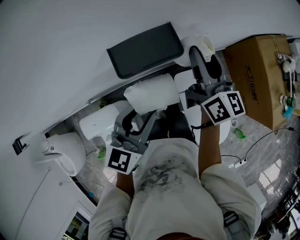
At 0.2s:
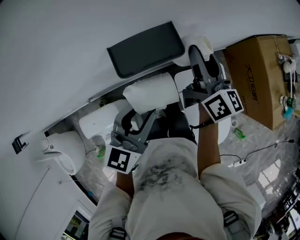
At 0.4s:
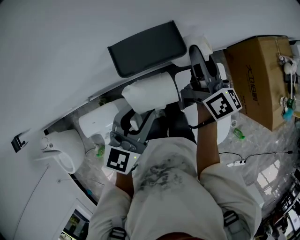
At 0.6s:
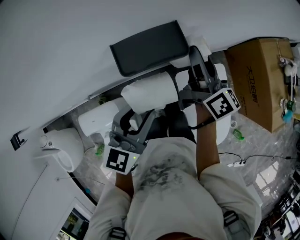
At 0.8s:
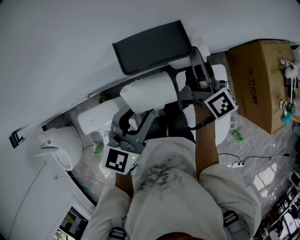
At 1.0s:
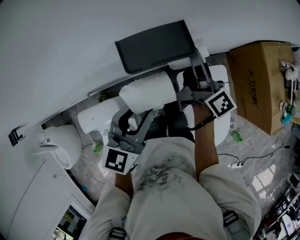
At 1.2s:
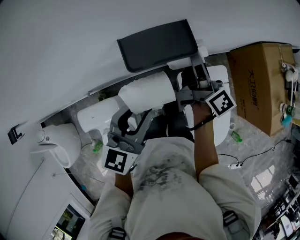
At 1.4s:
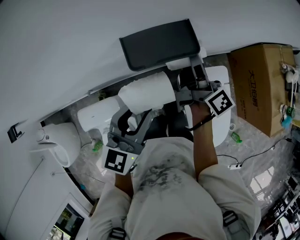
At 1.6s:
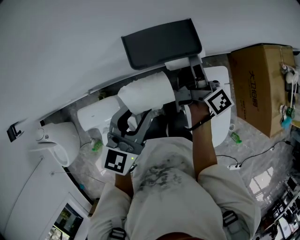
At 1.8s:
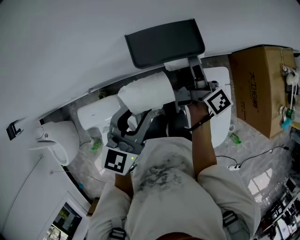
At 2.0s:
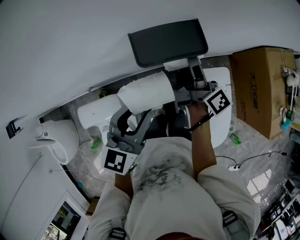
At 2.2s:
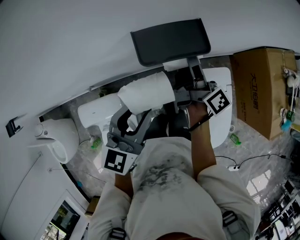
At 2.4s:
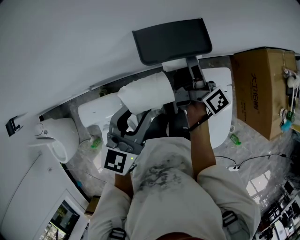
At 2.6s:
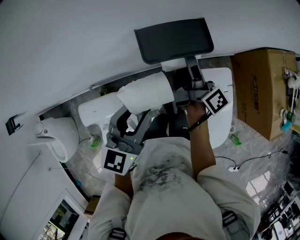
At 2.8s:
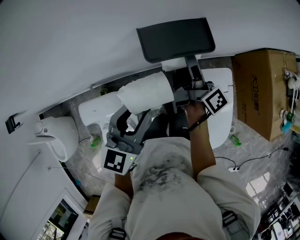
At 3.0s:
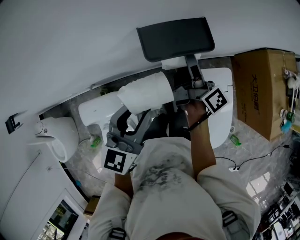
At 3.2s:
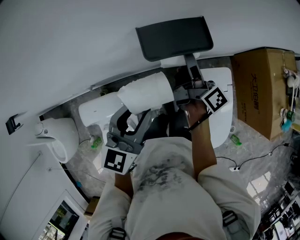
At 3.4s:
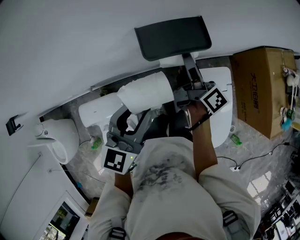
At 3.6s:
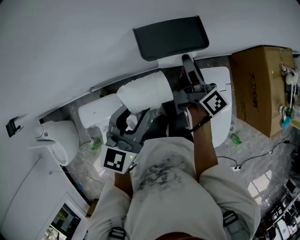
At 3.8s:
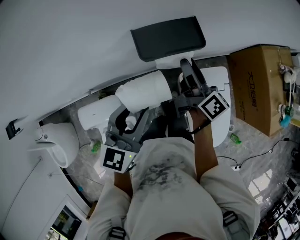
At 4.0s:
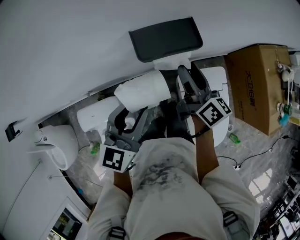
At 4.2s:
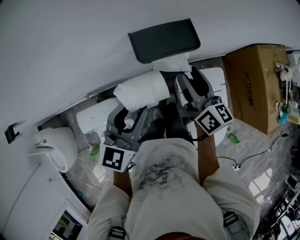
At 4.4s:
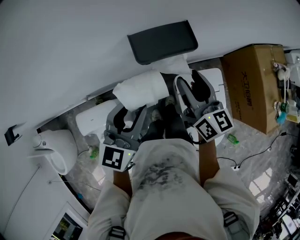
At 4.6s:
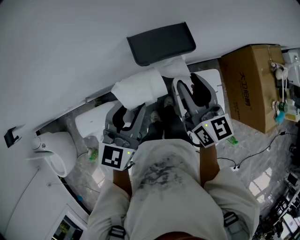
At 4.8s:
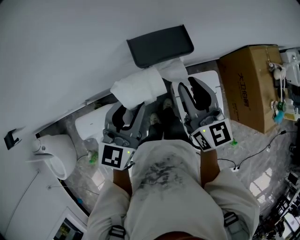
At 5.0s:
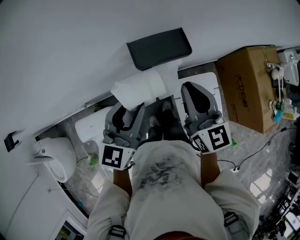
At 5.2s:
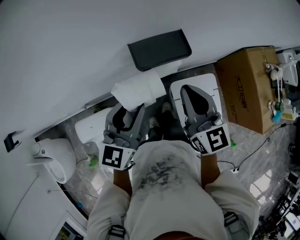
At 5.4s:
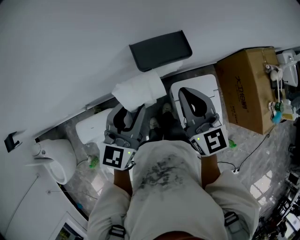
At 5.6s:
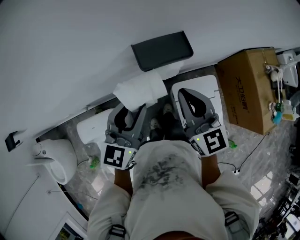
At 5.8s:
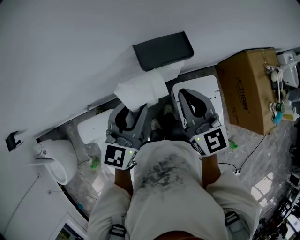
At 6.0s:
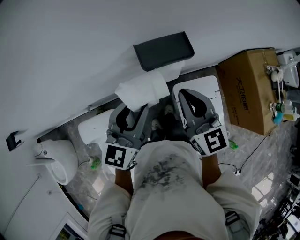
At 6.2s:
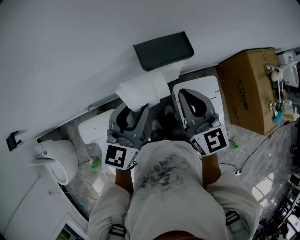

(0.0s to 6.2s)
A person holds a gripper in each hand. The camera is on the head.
0.0s - 1.6s: The right gripper heads downward, covering about 5 cm, and turns by approximately 40 degrees.
1.6s - 3.2s: The right gripper shifts by some 5 cm.
3.2s - 4.6s: The right gripper travels backward and upward by approximately 10 cm, and rotates around the line of its fingers by some 60 degrees, counterclockwise from behind.
4.6s - 6.2s: The right gripper changes place by some 5 cm, and closes its fingers.

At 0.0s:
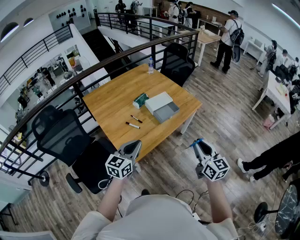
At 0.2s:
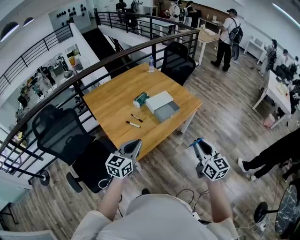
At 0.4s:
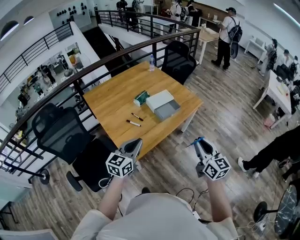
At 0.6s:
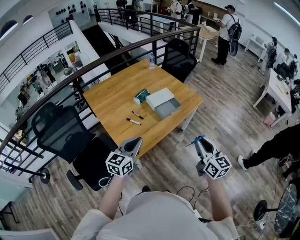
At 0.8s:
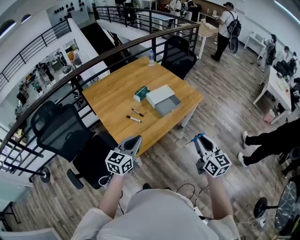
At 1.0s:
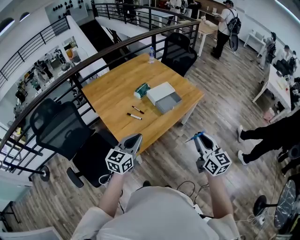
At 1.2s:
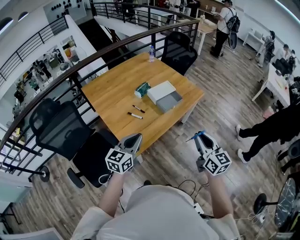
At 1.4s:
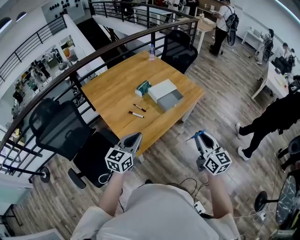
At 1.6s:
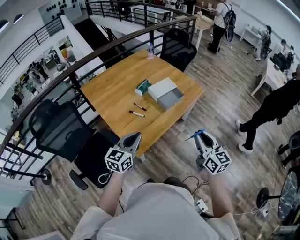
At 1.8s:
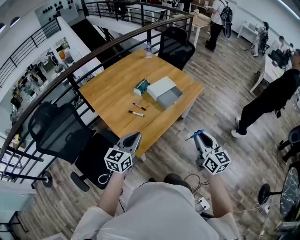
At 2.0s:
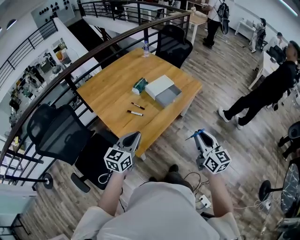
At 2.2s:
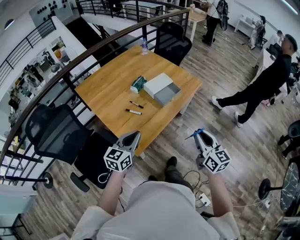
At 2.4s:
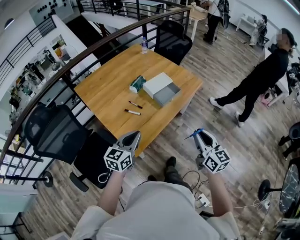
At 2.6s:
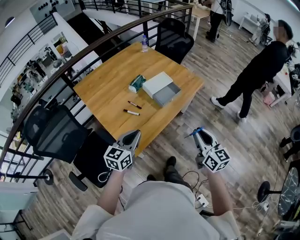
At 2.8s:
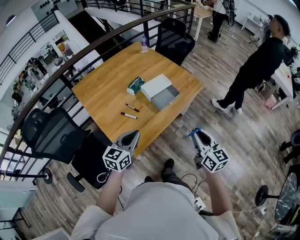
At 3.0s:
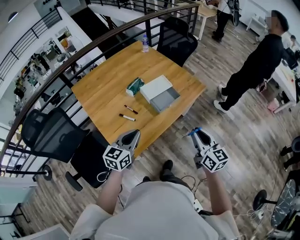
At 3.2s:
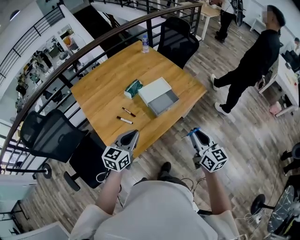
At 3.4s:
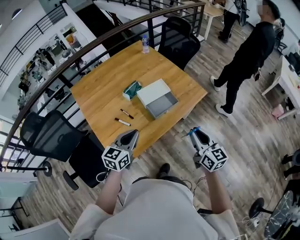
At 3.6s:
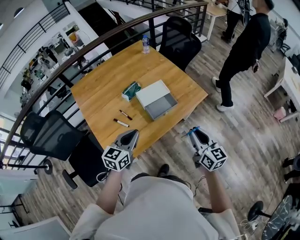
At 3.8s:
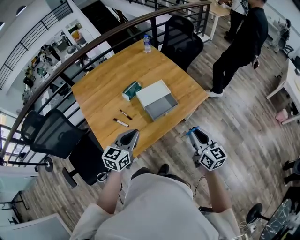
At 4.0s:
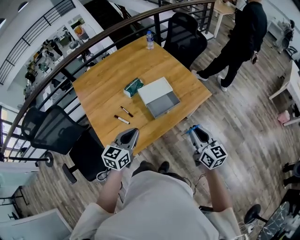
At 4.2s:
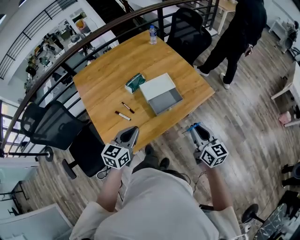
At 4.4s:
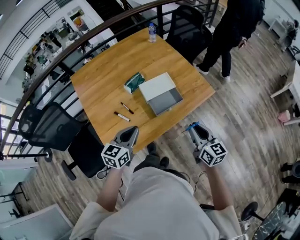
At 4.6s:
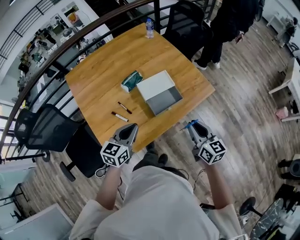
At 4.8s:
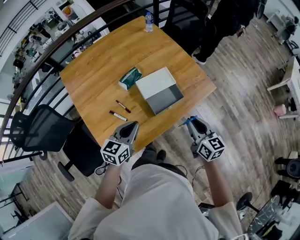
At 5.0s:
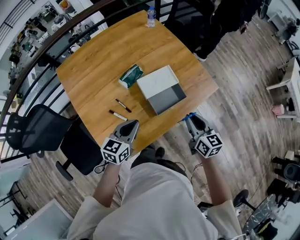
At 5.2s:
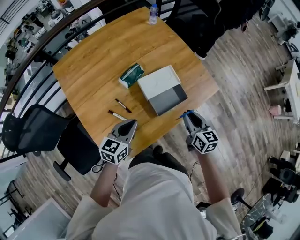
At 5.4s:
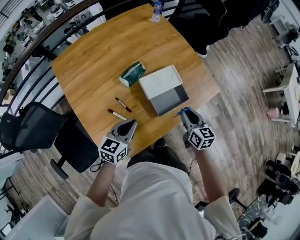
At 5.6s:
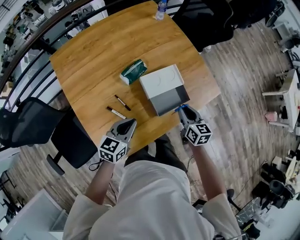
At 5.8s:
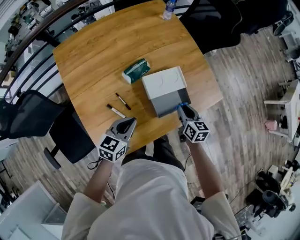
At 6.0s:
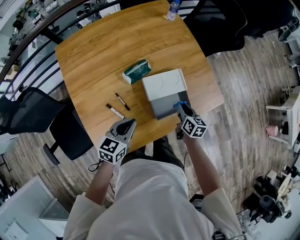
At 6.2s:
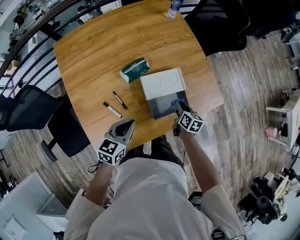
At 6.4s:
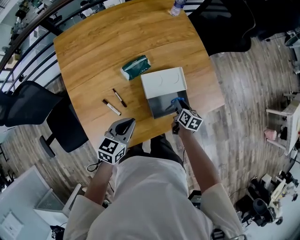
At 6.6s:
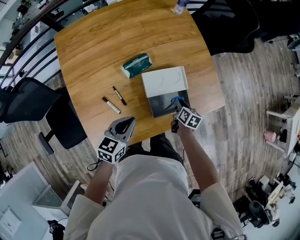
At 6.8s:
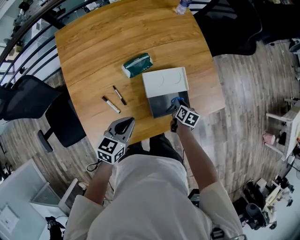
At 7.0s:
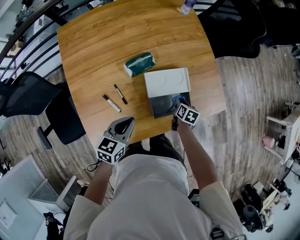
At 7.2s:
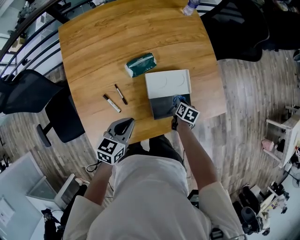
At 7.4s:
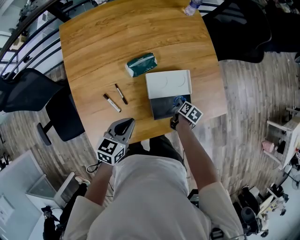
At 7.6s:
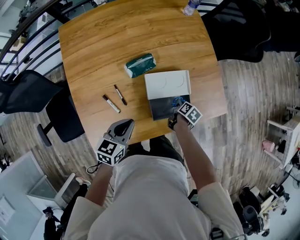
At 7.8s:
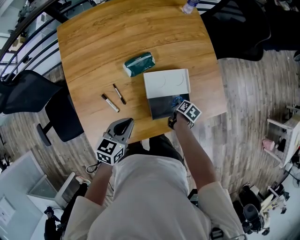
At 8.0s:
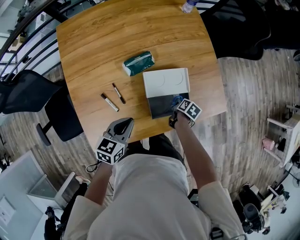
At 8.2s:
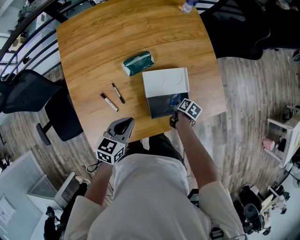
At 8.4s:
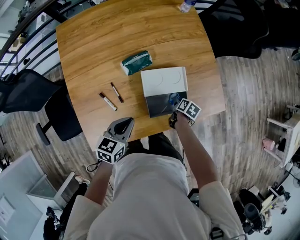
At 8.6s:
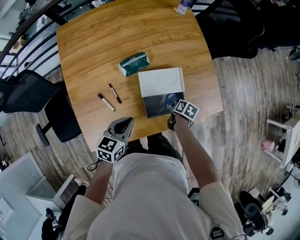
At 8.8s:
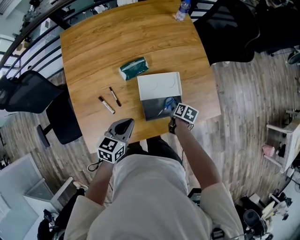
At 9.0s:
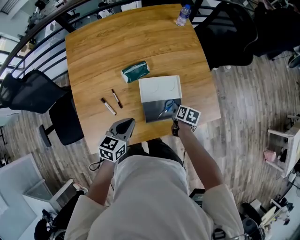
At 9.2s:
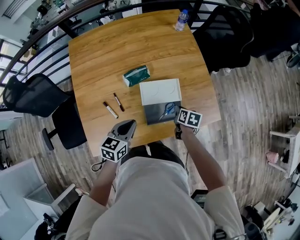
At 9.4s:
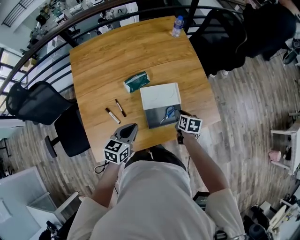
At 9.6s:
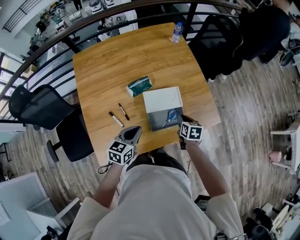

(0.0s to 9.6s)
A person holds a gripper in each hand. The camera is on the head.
0.0s - 1.6s: Both grippers move to the left, roughly 5 cm.
1.6s - 3.2s: The grippers both shift forward and to the right by approximately 20 cm.
3.2s - 4.8s: The grippers both shift forward and downward by approximately 20 cm.
4.8s - 6.4s: The left gripper shifts about 10 cm downward and forward, while the right gripper goes about 30 cm downward and forward, and turns by roughly 30 degrees.
6.4s - 8.0s: The right gripper travels downward by some 10 cm, and turns by approximately 30 degrees.
8.0s - 9.6s: The left gripper moves approximately 5 cm; the right gripper heads upward, covering roughly 15 cm, and rotates approximately 40 degrees.

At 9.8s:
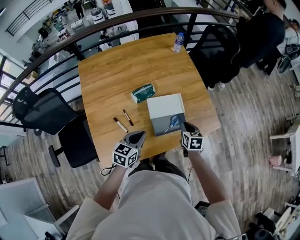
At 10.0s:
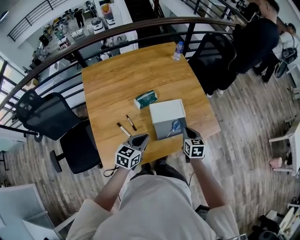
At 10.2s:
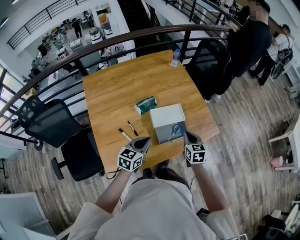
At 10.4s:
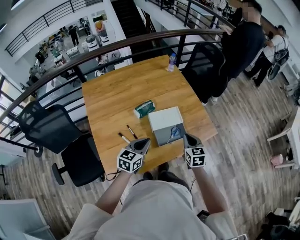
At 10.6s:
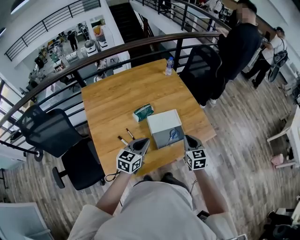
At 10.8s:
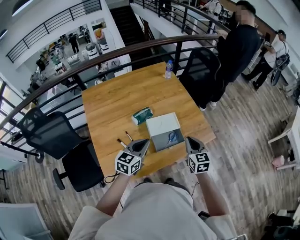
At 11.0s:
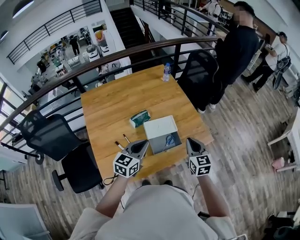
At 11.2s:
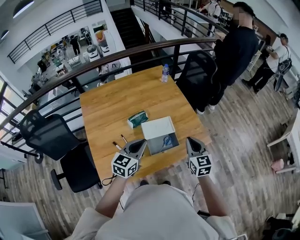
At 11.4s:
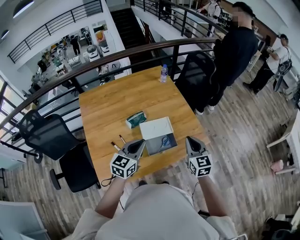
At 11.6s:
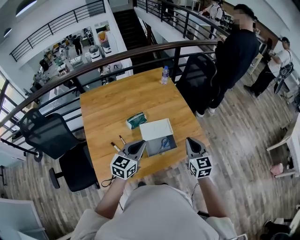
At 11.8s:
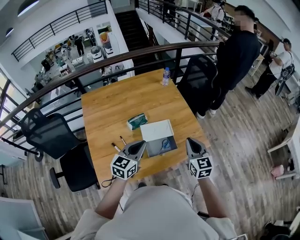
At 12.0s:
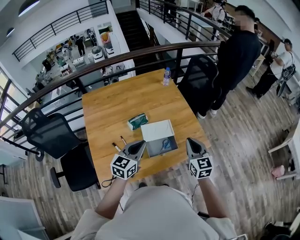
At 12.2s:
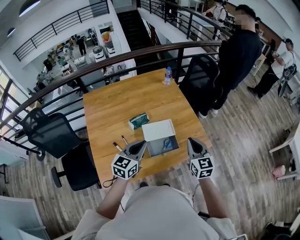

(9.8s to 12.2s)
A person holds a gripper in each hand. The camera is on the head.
9.8s - 11.0s: The grippers both shift upward by some 15 cm. The right gripper swivels about 30 degrees.
11.0s - 12.2s: The grippers make only small movements.

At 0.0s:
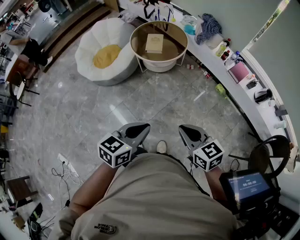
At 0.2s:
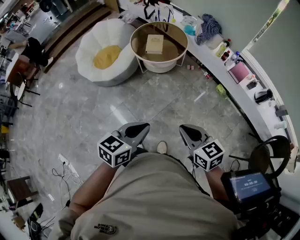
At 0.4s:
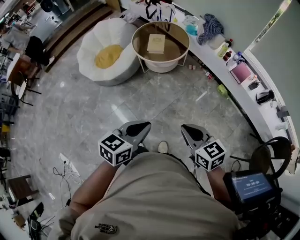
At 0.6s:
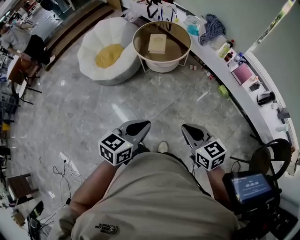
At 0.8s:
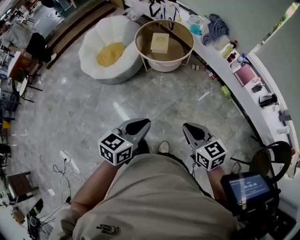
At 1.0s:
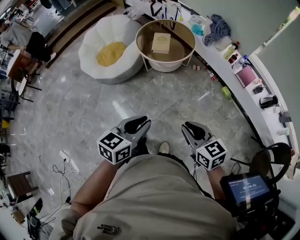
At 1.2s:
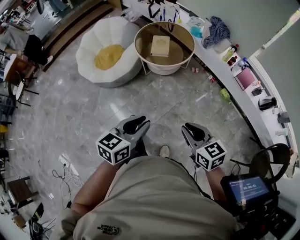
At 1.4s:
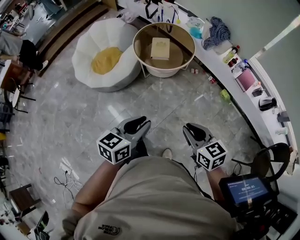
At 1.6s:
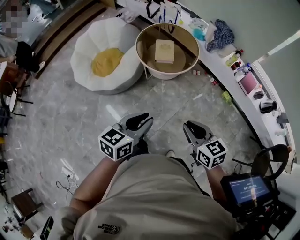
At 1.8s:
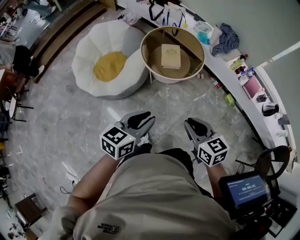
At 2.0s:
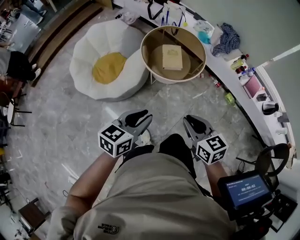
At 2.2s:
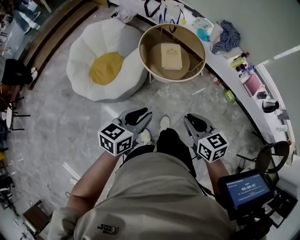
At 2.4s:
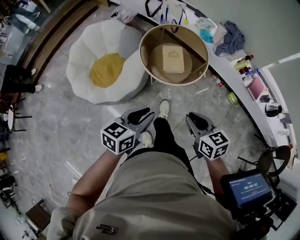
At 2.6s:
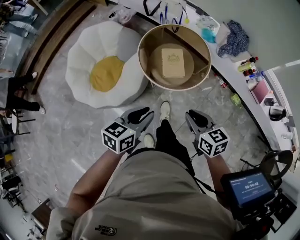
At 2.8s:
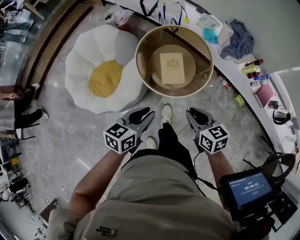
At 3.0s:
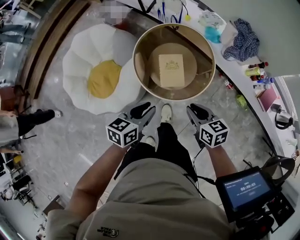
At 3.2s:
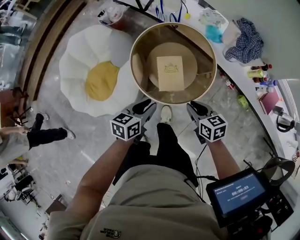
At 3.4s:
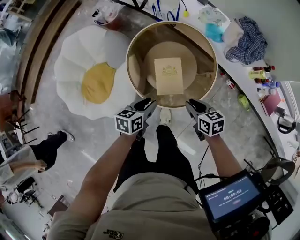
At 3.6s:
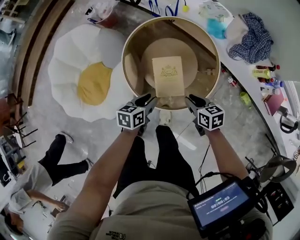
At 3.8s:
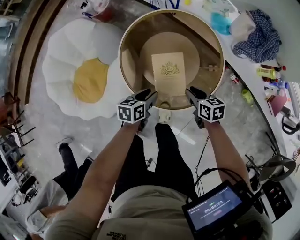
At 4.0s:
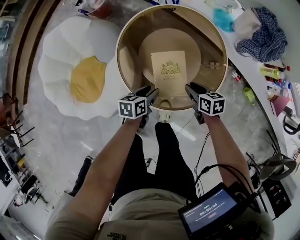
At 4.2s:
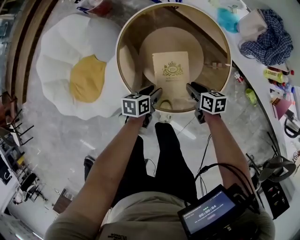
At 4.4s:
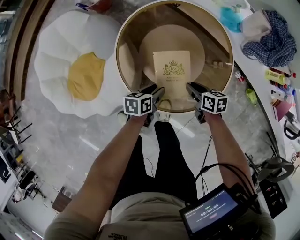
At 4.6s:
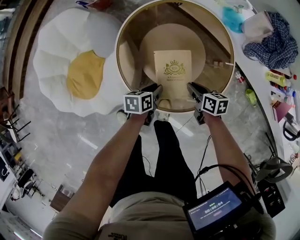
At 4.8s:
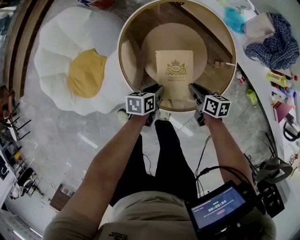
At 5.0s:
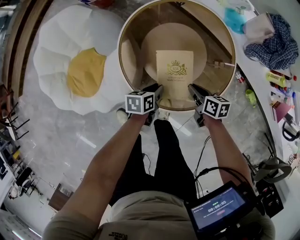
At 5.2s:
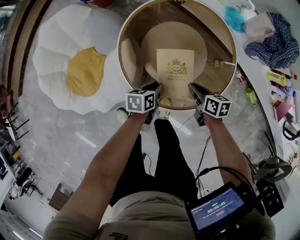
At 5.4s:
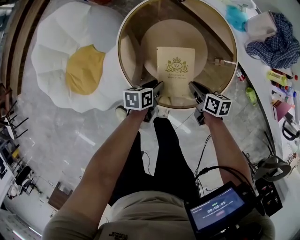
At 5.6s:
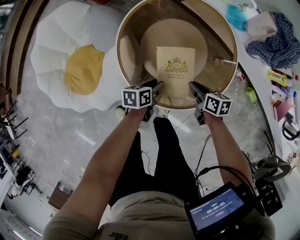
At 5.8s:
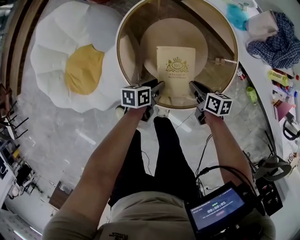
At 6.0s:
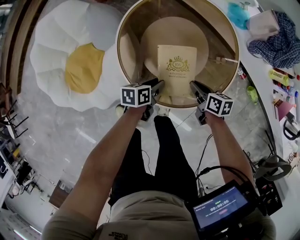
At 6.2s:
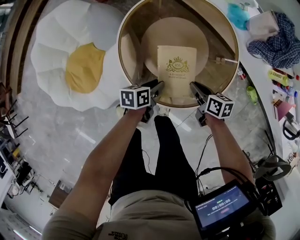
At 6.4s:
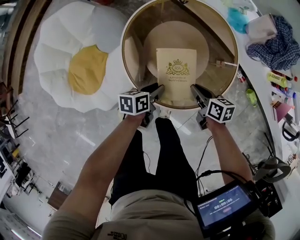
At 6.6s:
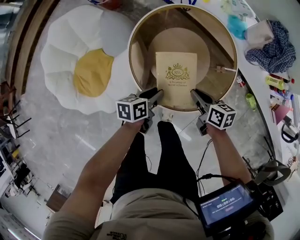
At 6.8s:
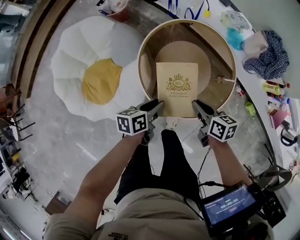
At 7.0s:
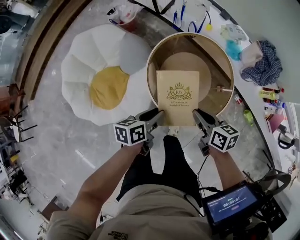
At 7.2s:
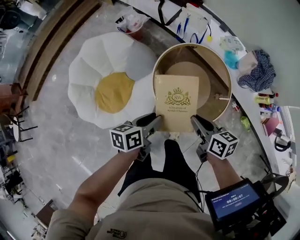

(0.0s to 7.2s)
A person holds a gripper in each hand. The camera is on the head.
0.0s - 1.4s: Both grippers move forward and to the left, roughly 15 cm.
1.4s - 2.8s: The two grippers travel together, forward, roughly 40 cm.
2.8s - 4.4s: Both grippers move downward and forward, some 40 cm. The left gripper changes its angle by about 30 degrees, and opens up; the right gripper changes its angle by some 30 degrees.
4.4s - 5.8s: The grippers move only a little.
5.8s - 7.2s: The left gripper travels upward and to the left by some 35 cm. Meanwhile the right gripper heads upward, covering roughly 35 cm.
